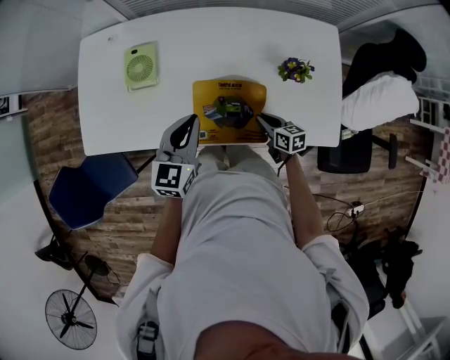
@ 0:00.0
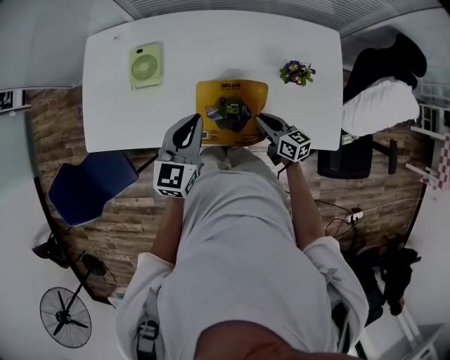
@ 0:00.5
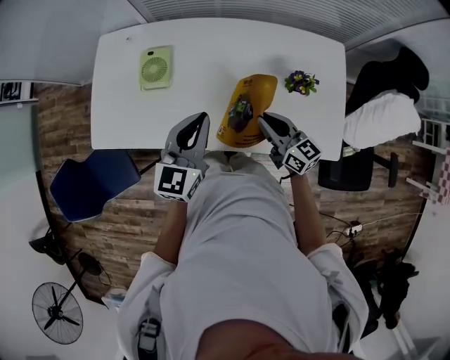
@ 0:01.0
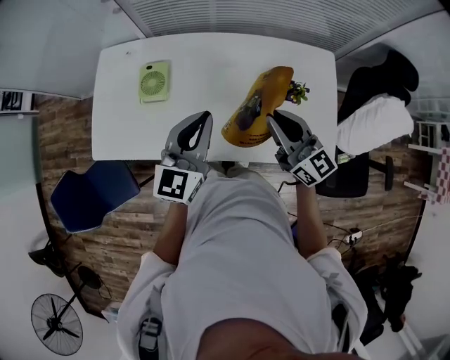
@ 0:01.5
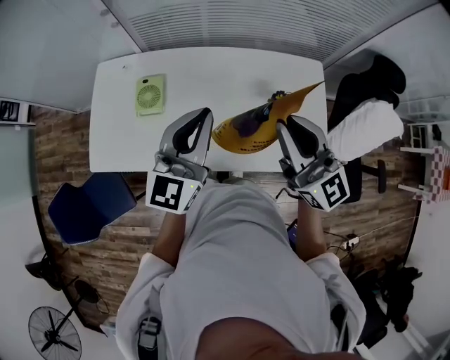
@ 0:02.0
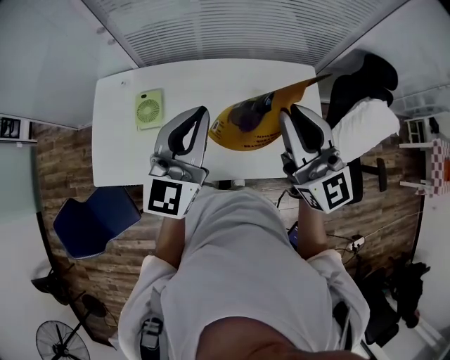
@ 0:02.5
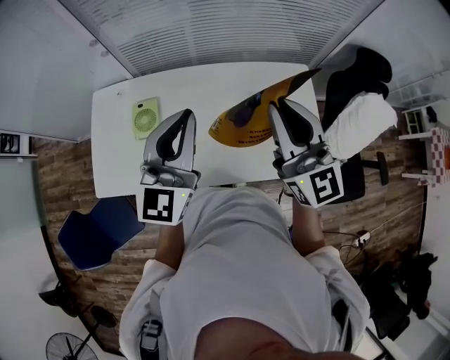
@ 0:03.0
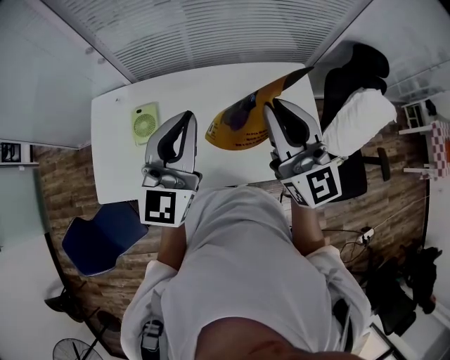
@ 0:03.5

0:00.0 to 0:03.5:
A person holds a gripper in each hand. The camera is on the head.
0:00.0 to 0:02.0: The left gripper heads upward, covering approximately 20 cm, and changes its angle by approximately 30 degrees; the right gripper shifts roughly 50 cm upward, and tips its fingers upward by some 50 degrees.
0:02.0 to 0:03.5: The right gripper moves approximately 5 cm, while the left gripper travels upward by roughly 5 cm.

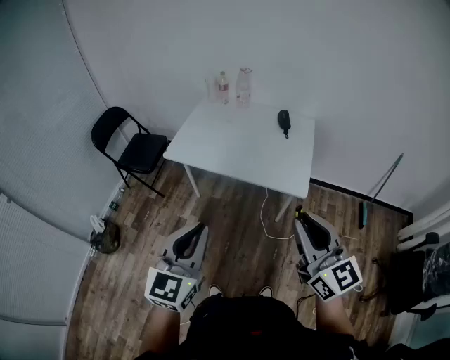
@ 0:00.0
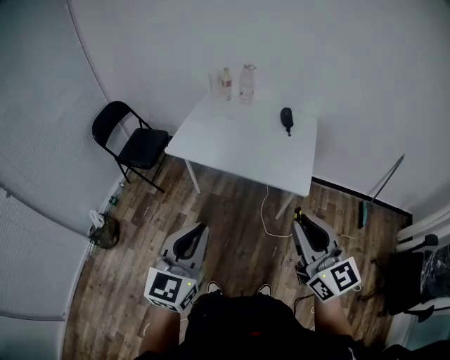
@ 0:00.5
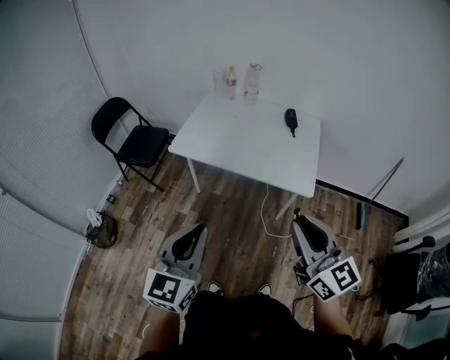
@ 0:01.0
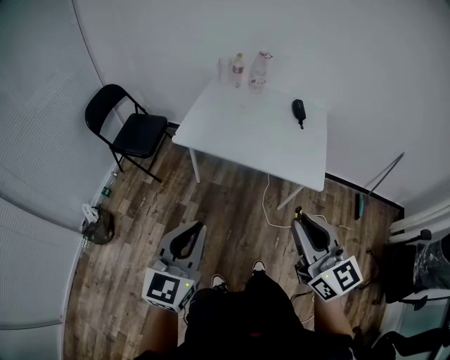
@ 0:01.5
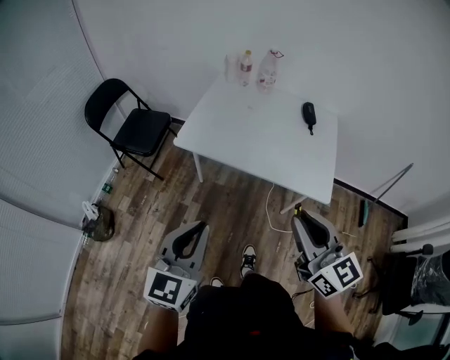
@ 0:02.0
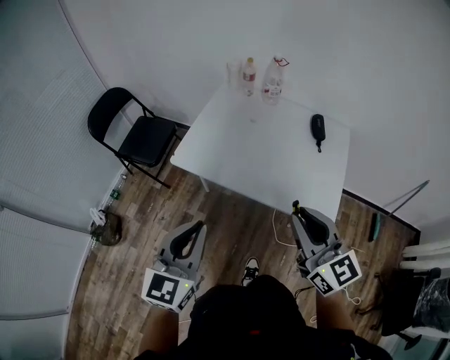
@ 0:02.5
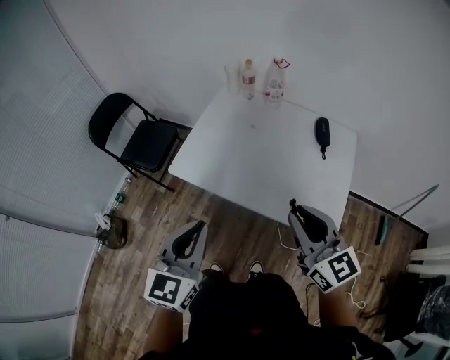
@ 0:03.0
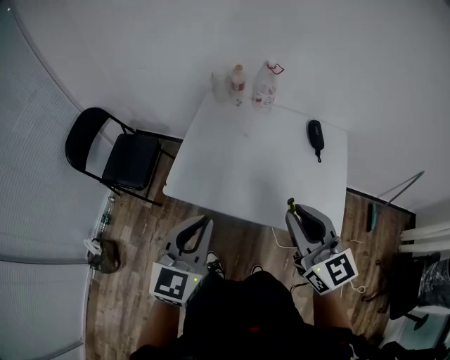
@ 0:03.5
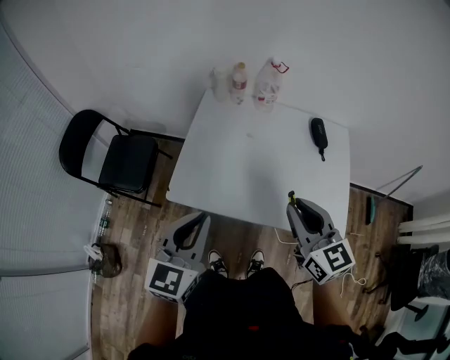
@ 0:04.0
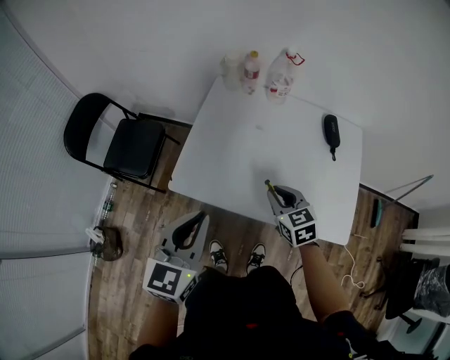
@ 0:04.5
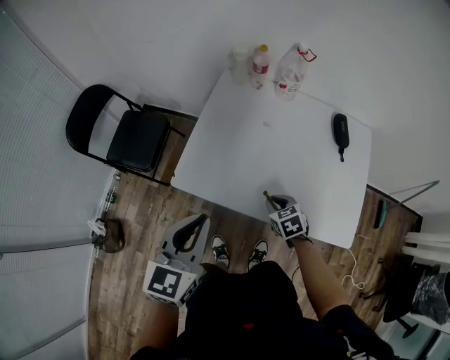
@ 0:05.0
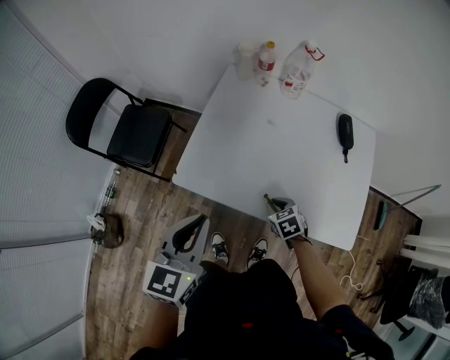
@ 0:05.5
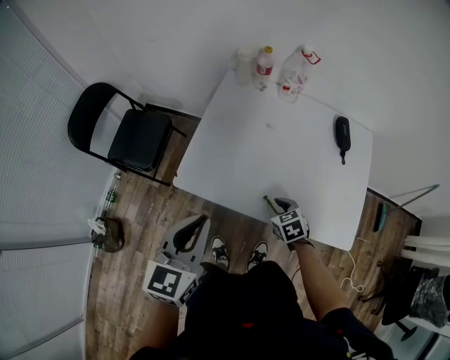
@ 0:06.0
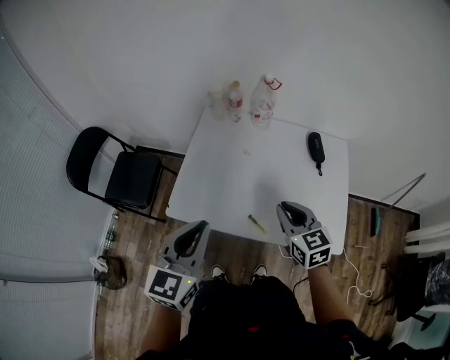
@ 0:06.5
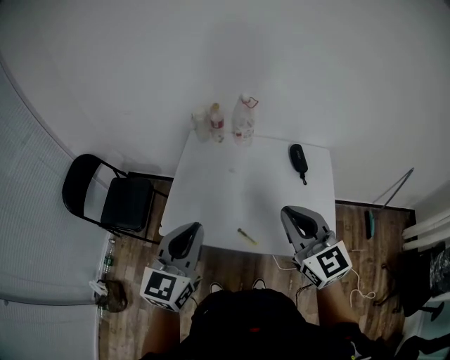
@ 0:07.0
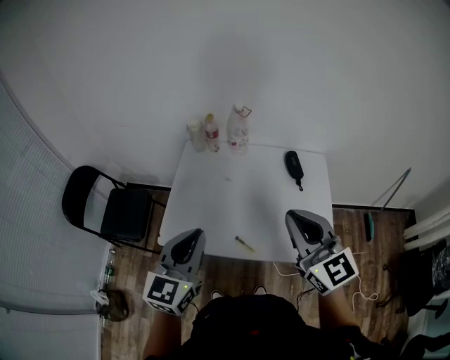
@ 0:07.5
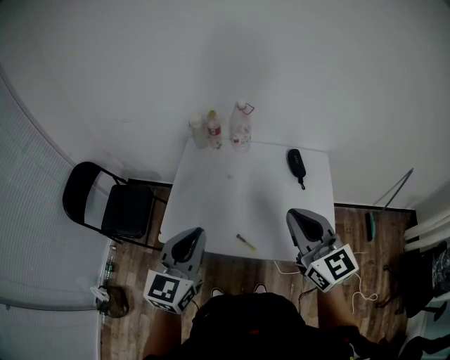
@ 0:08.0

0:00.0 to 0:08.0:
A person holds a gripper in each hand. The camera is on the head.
0:00.0 to 0:02.0: The left gripper goes approximately 20 cm to the left, forward and downward. Meanwhile the right gripper is displaced to the left and forward by approximately 20 cm.
0:02.0 to 0:04.0: The two grippers go some 30 cm forward.
0:04.0 to 0:06.0: The right gripper is displaced downward by some 30 cm, and tilts its fingers some 40 degrees downward.
0:06.0 to 0:08.0: The right gripper goes about 40 cm upward, and angles its fingers upward, by about 50 degrees; the left gripper is displaced upward and to the right by about 15 cm.

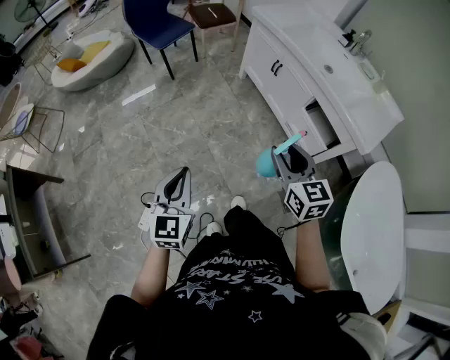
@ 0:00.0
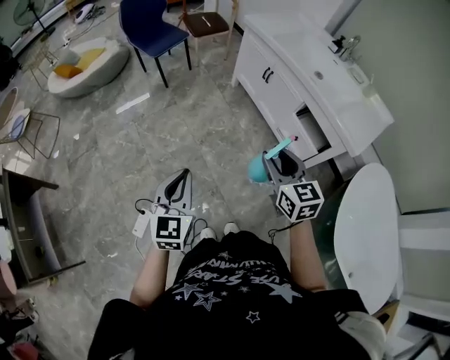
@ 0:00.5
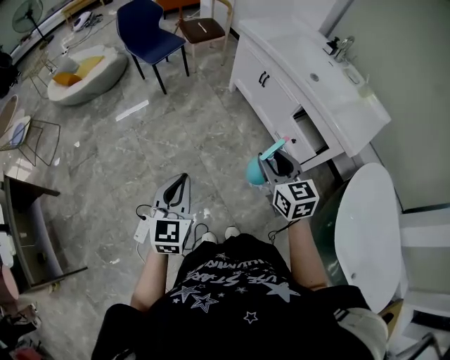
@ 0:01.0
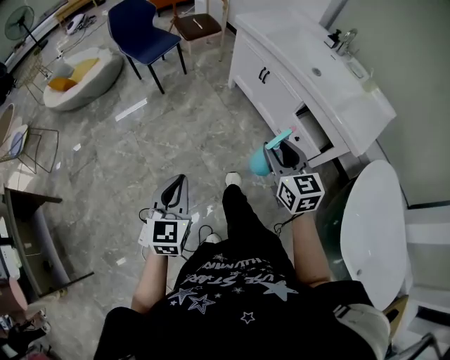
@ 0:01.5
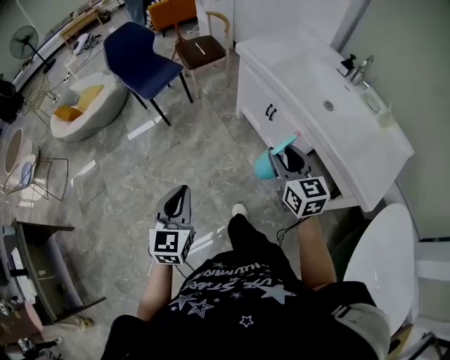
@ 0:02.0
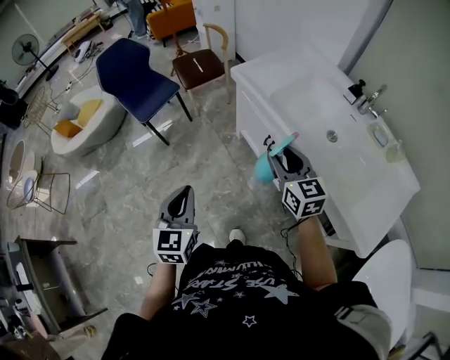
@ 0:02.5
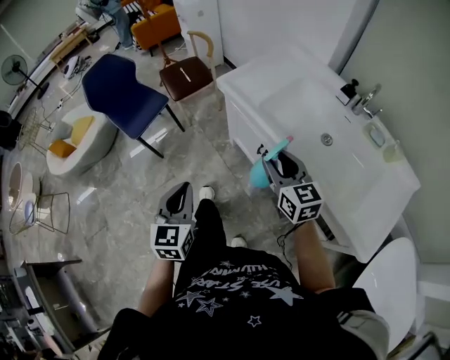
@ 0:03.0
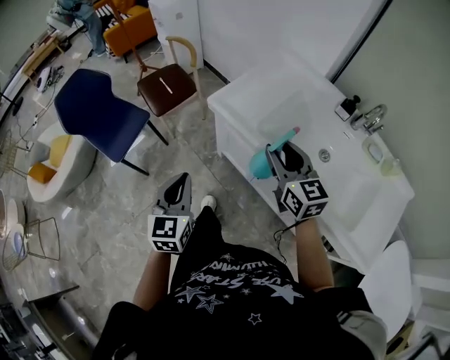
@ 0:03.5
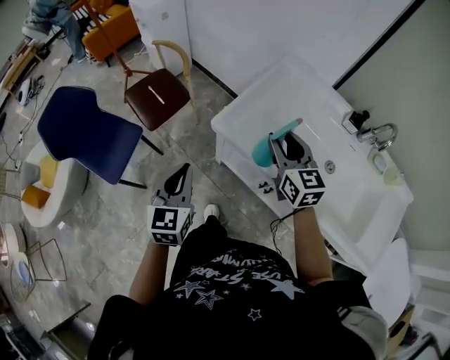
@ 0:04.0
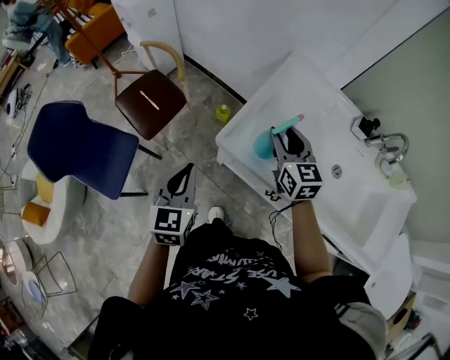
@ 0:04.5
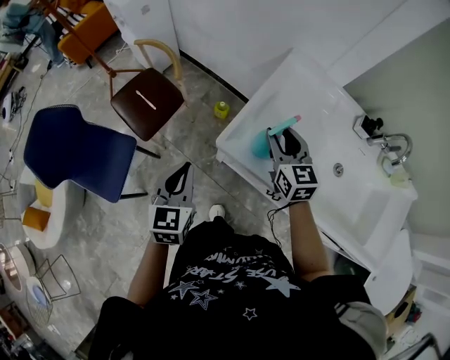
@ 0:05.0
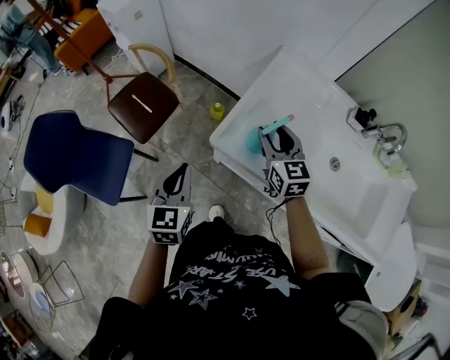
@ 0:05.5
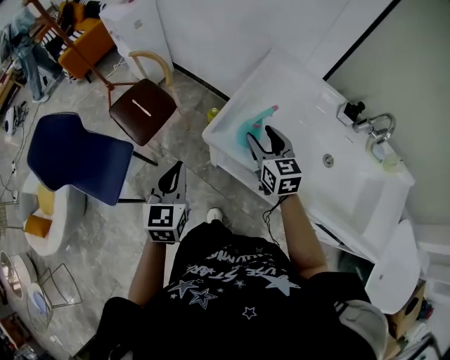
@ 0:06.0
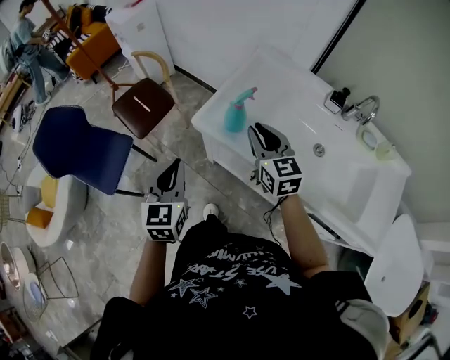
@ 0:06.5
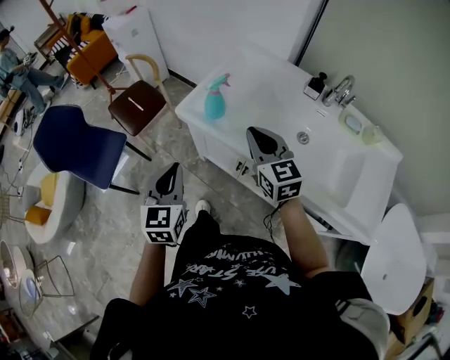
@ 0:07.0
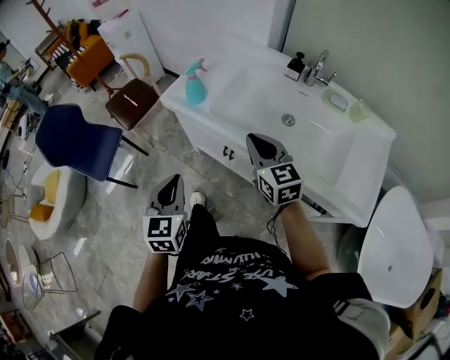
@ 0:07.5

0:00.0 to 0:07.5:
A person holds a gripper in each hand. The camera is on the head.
0:00.0 to 0:02.0: The two grippers go about 25 cm forward.
0:02.0 to 0:04.0: The two grippers travel together, forward, about 60 cm.
0:04.0 to 0:05.5: The left gripper is displaced forward by some 10 cm; the right gripper goes some 15 cm forward and downward.
0:05.5 to 0:07.5: Both grippers move backward and to the right, some 35 cm. The right gripper closes its fingers.

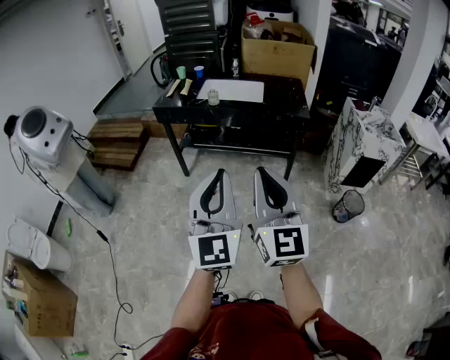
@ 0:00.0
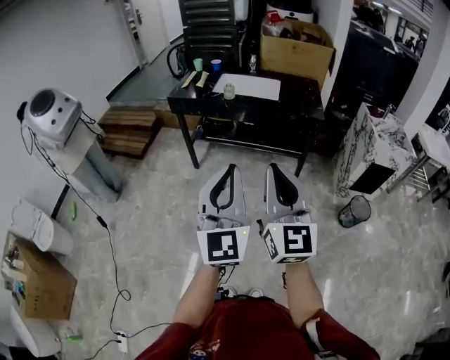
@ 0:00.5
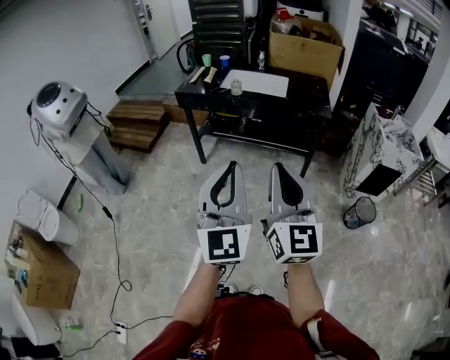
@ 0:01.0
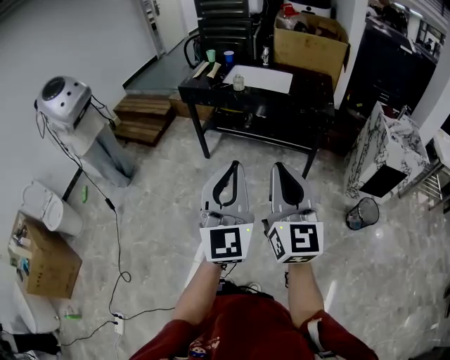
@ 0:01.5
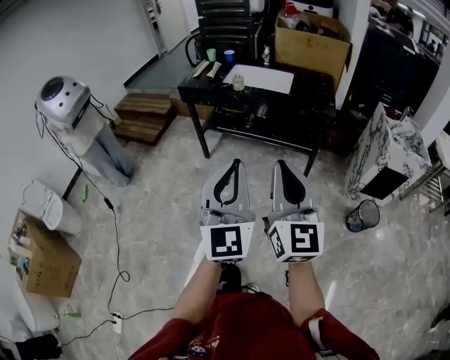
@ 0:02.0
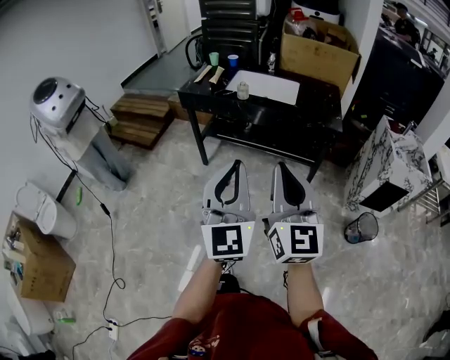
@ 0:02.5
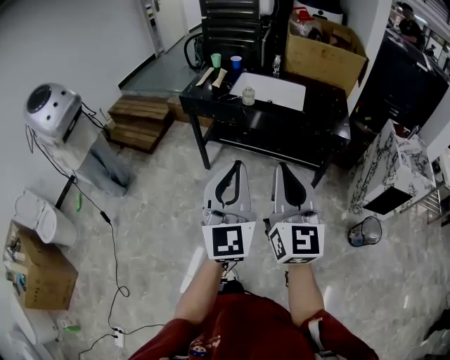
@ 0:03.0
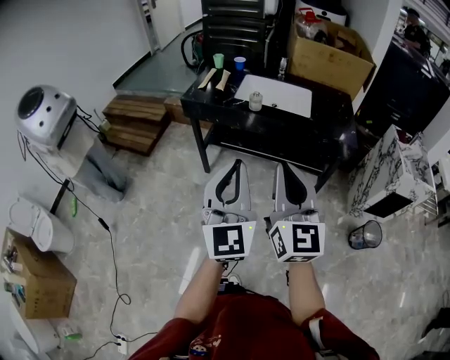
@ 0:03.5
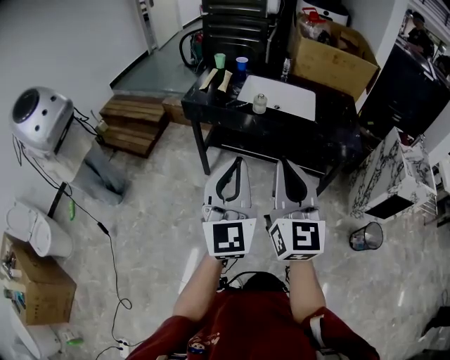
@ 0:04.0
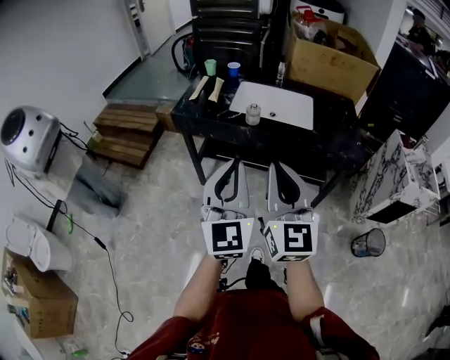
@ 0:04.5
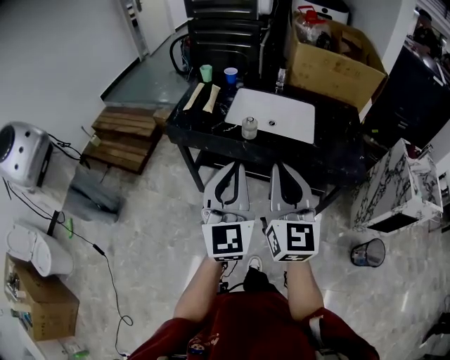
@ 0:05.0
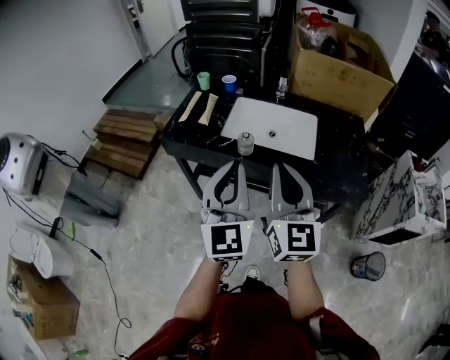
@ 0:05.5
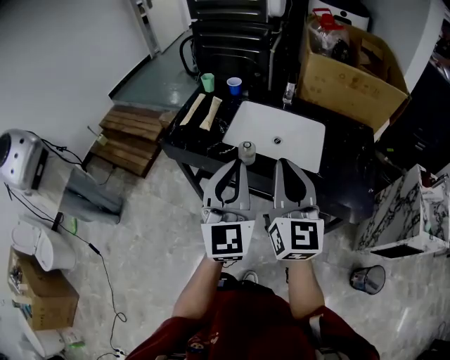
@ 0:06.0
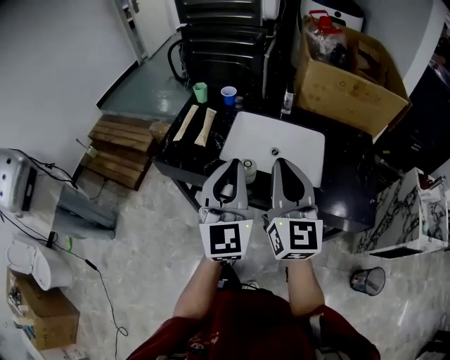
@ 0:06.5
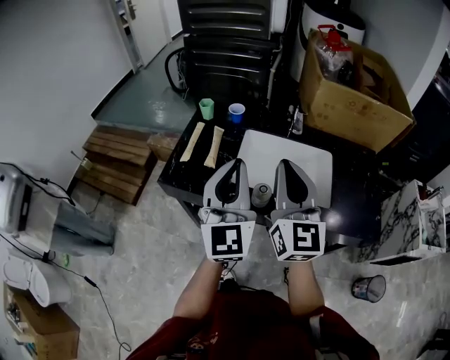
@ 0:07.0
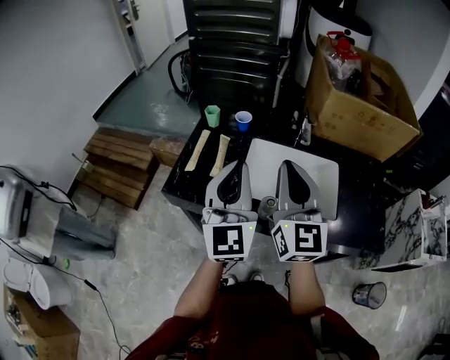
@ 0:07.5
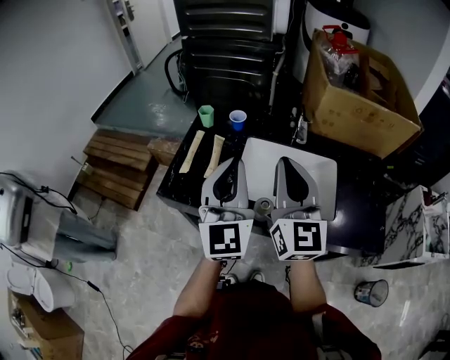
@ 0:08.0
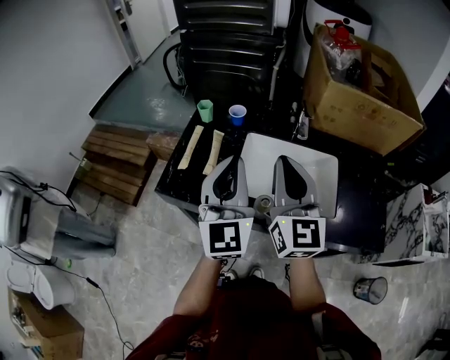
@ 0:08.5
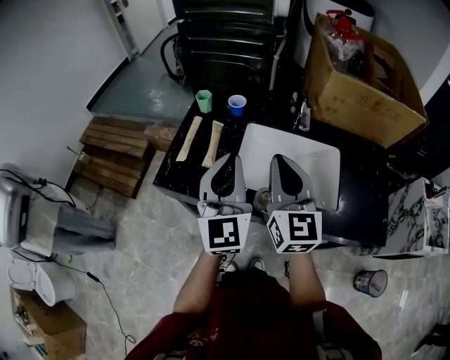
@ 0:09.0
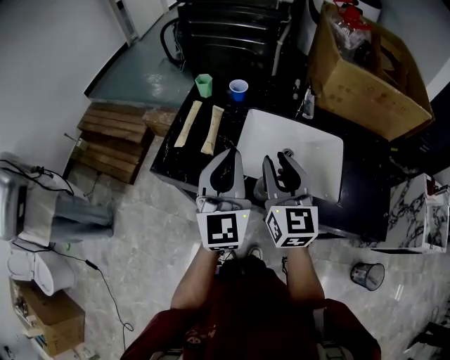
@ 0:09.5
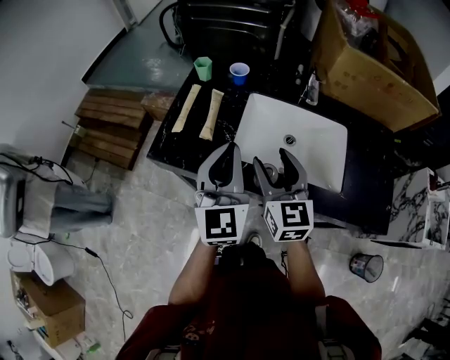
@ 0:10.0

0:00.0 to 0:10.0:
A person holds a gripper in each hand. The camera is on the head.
0:00.0 to 0:02.0: The grippers both shift to the right by approximately 5 cm.
0:02.0 to 0:04.0: Both grippers move forward and to the left, about 30 cm.
0:04.0 to 0:06.0: Both grippers move forward, some 35 cm.
0:06.0 to 0:08.0: Both grippers travel together forward and to the left, approximately 25 cm.
0:08.0 to 0:10.0: The left gripper moves downward, some 10 cm. Meanwhile the right gripper moves downward, some 15 cm, rotates roughly 20 degrees, and opens.
